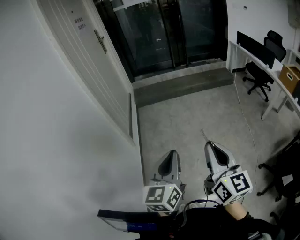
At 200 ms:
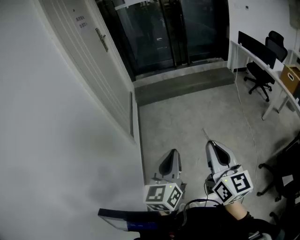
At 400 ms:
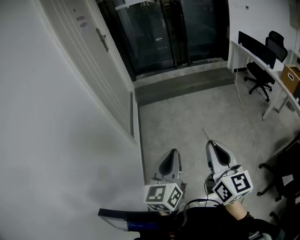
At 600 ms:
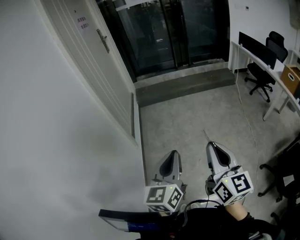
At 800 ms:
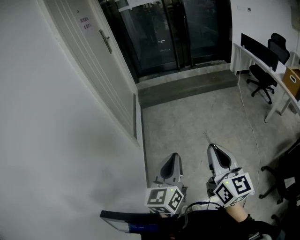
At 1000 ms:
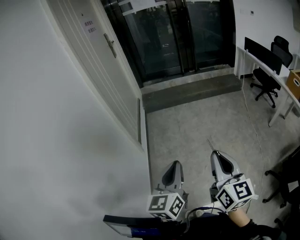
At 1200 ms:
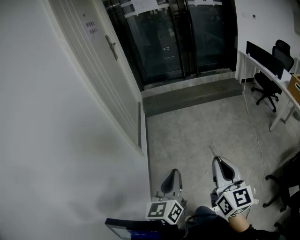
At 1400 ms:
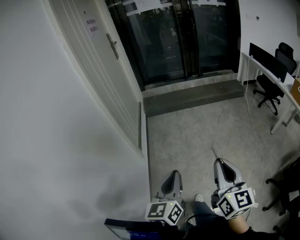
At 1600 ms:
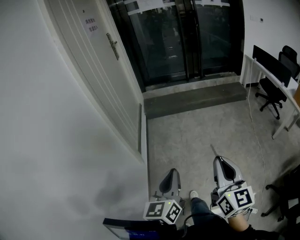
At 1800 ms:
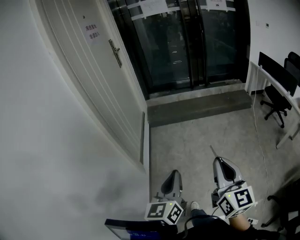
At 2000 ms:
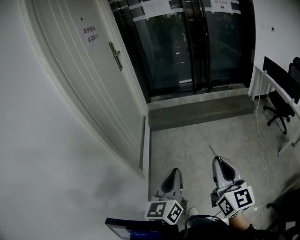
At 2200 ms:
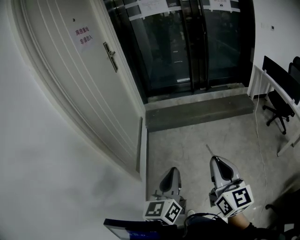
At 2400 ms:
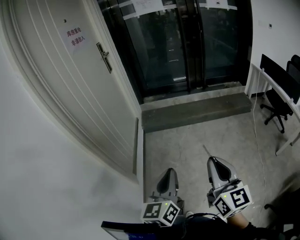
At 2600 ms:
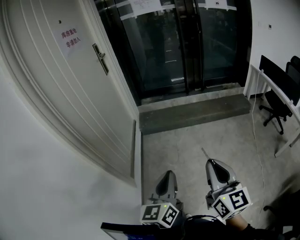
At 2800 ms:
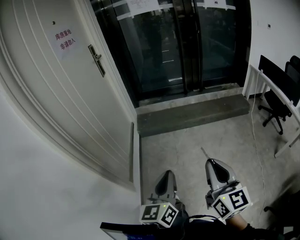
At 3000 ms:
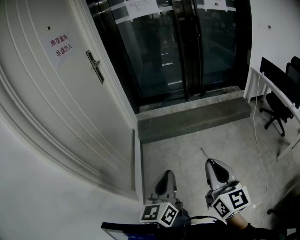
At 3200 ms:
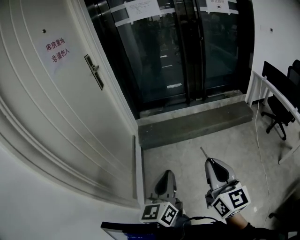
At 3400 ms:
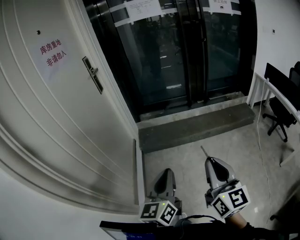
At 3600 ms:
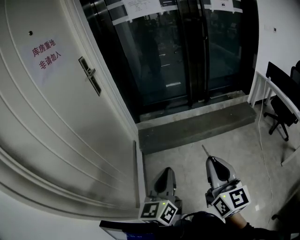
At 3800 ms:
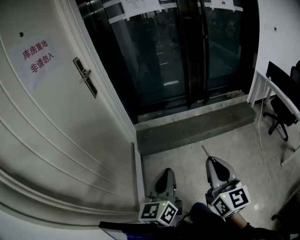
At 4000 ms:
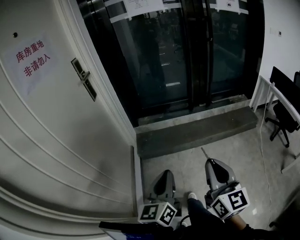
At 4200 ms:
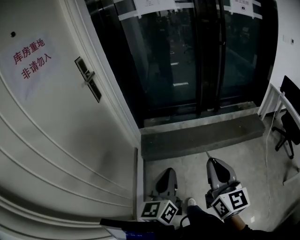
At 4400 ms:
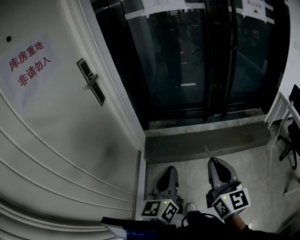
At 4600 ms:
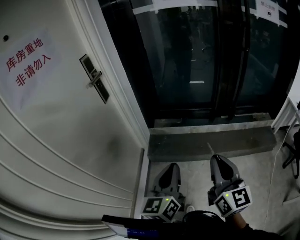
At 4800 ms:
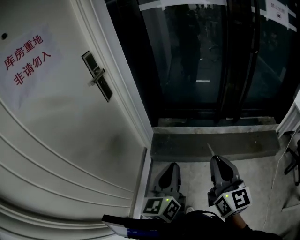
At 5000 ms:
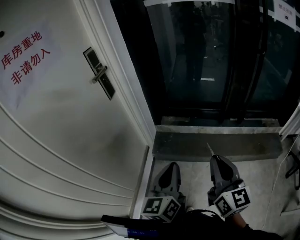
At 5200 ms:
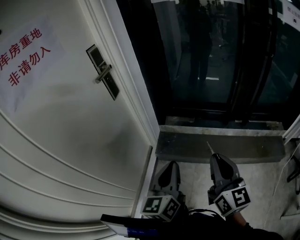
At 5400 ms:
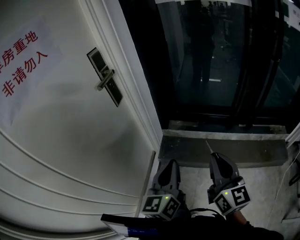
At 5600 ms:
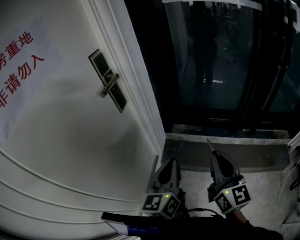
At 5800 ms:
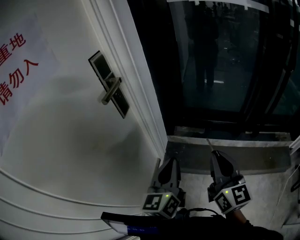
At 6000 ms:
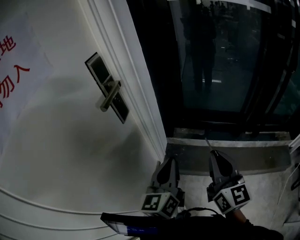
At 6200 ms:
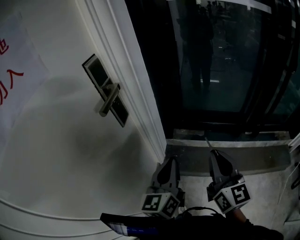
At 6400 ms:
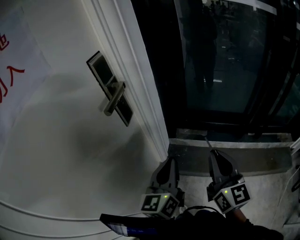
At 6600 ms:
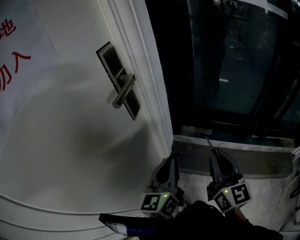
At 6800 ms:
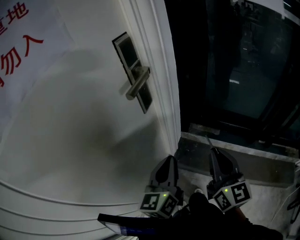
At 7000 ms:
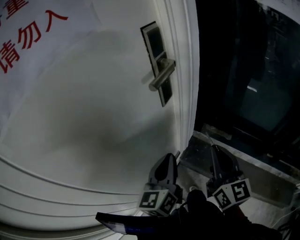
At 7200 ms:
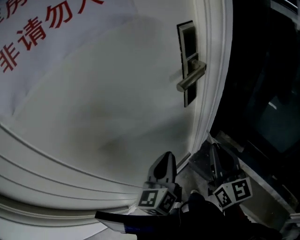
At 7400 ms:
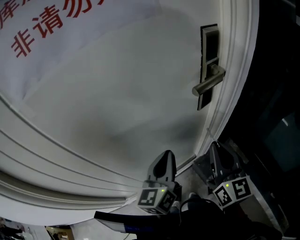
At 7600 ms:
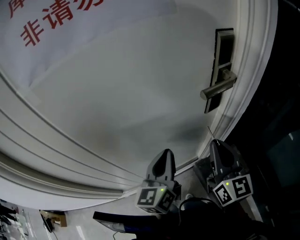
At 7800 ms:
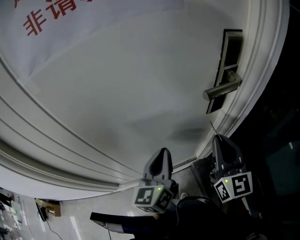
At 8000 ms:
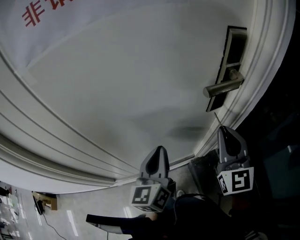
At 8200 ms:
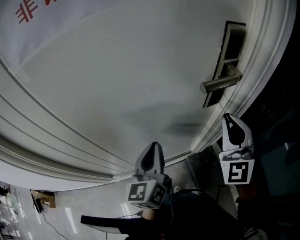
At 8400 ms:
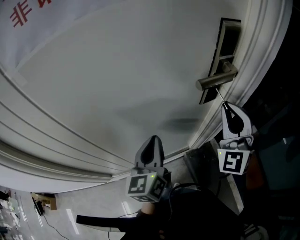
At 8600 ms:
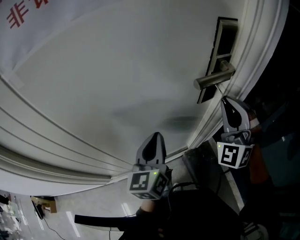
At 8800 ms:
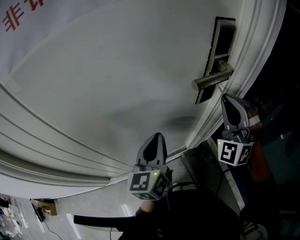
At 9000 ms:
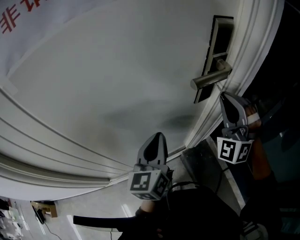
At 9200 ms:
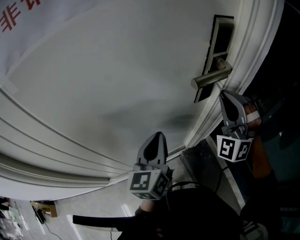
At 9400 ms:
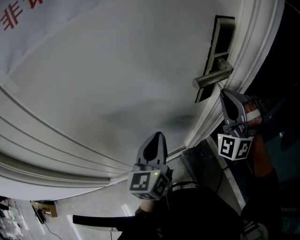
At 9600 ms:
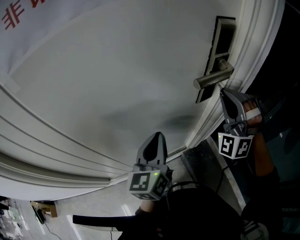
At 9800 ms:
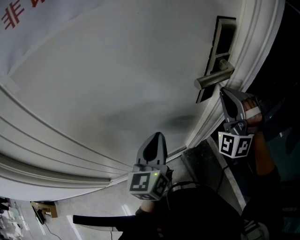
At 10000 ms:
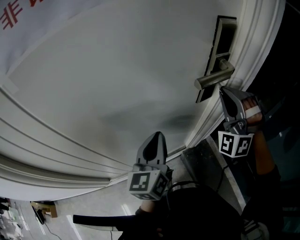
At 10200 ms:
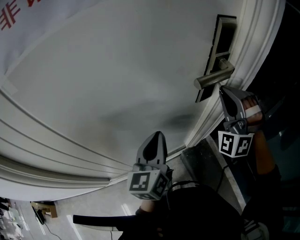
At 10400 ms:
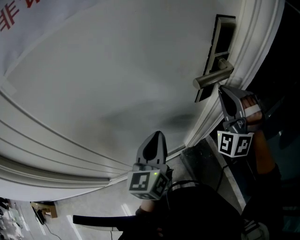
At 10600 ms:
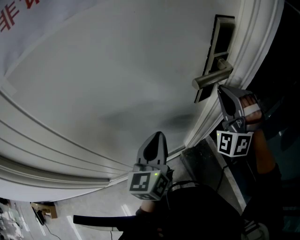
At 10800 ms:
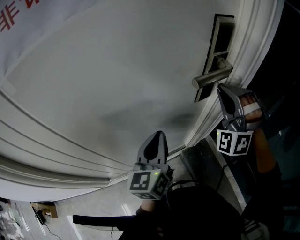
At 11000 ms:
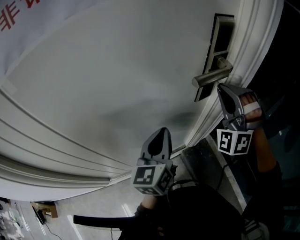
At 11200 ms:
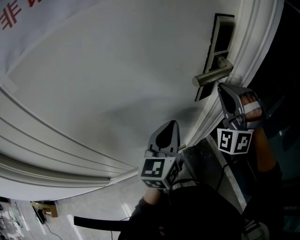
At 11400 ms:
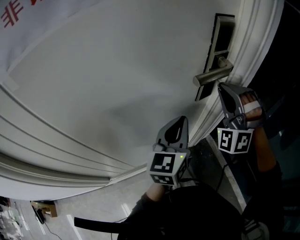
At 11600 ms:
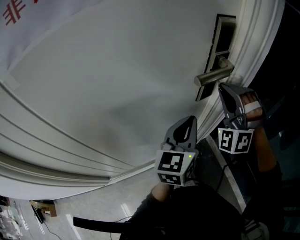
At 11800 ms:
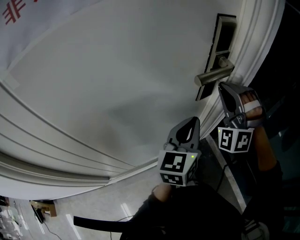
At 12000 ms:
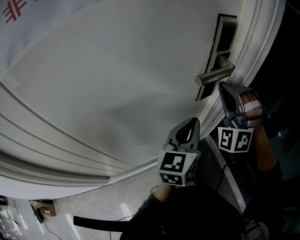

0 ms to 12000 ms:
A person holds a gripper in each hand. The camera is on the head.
0 ms to 1600 ms: The left gripper is displaced forward and to the left by some 15 cm. The right gripper travels forward by roughly 10 cm.
1600 ms to 3000 ms: The grippers both shift forward by roughly 35 cm.
3000 ms to 4400 ms: The two grippers travel together, forward, some 40 cm.
4400 ms to 6000 ms: The left gripper heads forward and to the left, covering about 35 cm. The right gripper is displaced forward by about 35 cm.
6000 ms to 7600 ms: The right gripper ends up some 25 cm from where it was, and changes its angle by about 50 degrees, while the left gripper changes place by some 20 cm, and changes its angle by about 50 degrees.
7600 ms to 9000 ms: The right gripper shifts about 10 cm forward and to the right, and rotates around the line of its fingers by approximately 90 degrees, counterclockwise from behind.
9000 ms to 10400 ms: The grippers move only a little.
10400 ms to 12000 ms: The left gripper travels to the right by about 10 cm.

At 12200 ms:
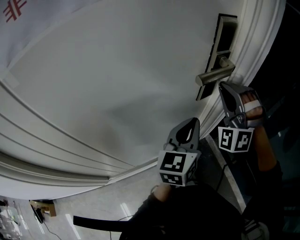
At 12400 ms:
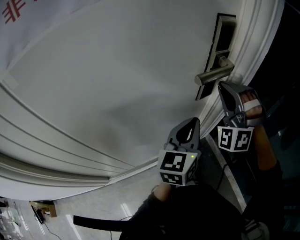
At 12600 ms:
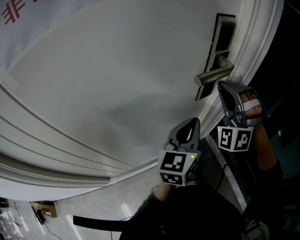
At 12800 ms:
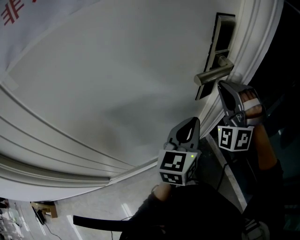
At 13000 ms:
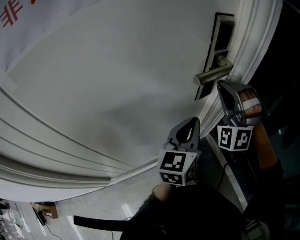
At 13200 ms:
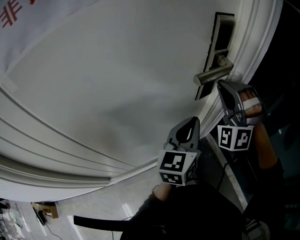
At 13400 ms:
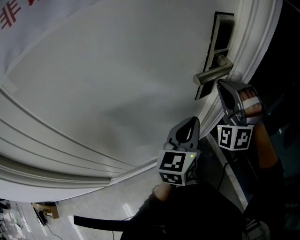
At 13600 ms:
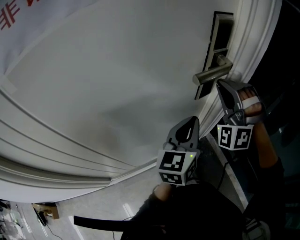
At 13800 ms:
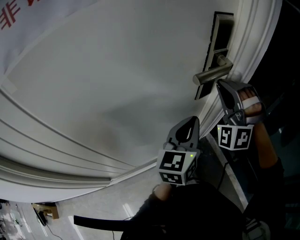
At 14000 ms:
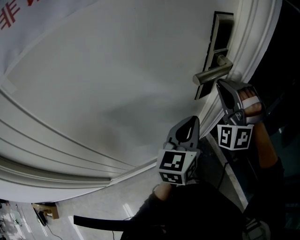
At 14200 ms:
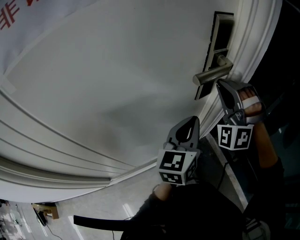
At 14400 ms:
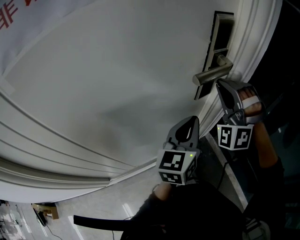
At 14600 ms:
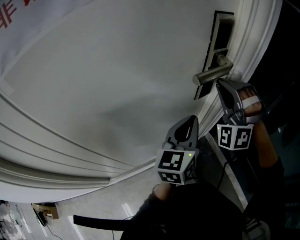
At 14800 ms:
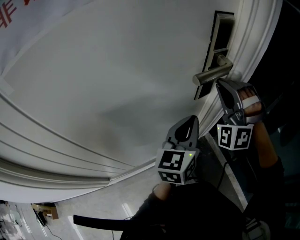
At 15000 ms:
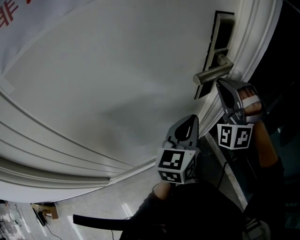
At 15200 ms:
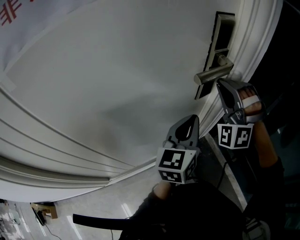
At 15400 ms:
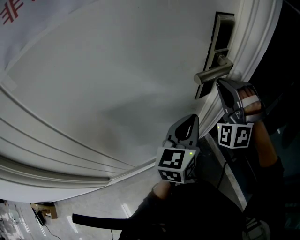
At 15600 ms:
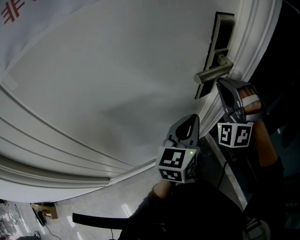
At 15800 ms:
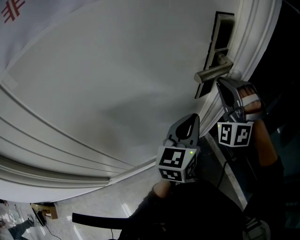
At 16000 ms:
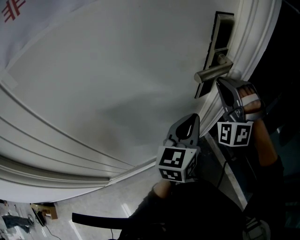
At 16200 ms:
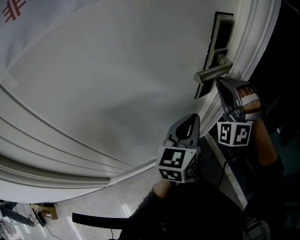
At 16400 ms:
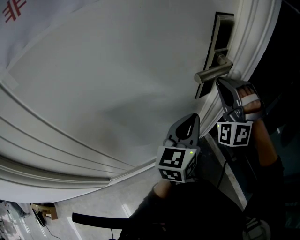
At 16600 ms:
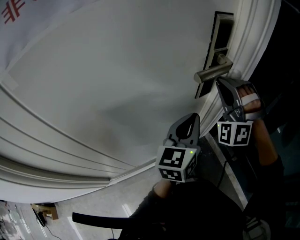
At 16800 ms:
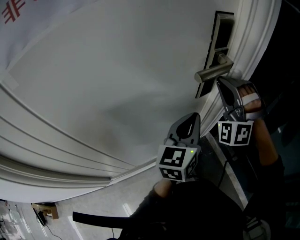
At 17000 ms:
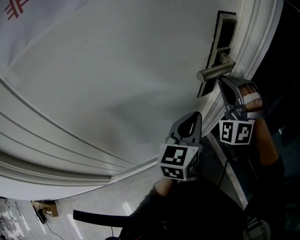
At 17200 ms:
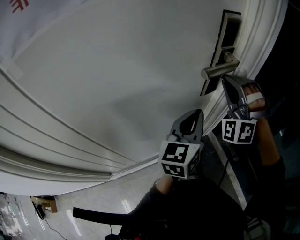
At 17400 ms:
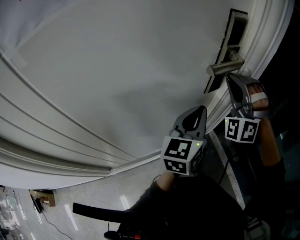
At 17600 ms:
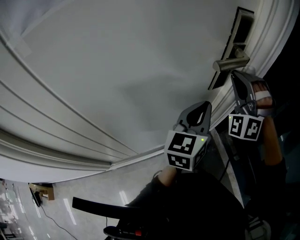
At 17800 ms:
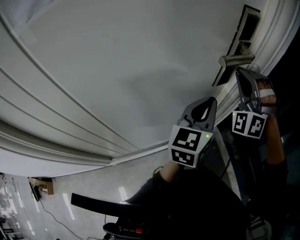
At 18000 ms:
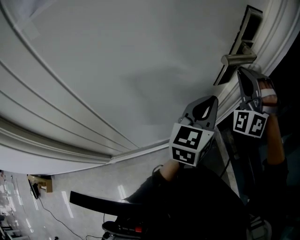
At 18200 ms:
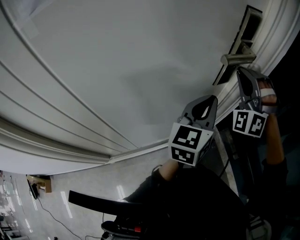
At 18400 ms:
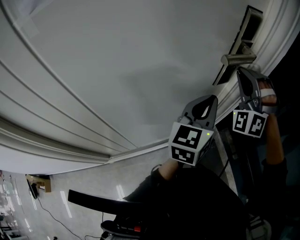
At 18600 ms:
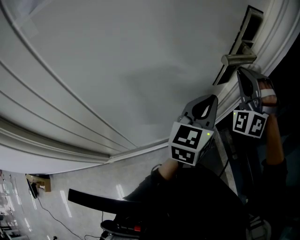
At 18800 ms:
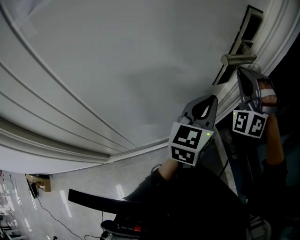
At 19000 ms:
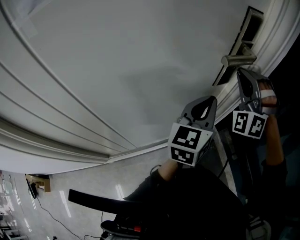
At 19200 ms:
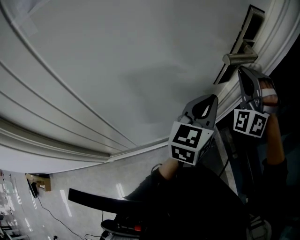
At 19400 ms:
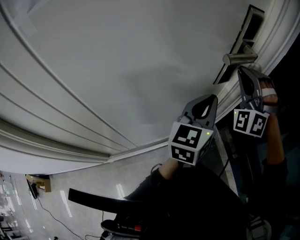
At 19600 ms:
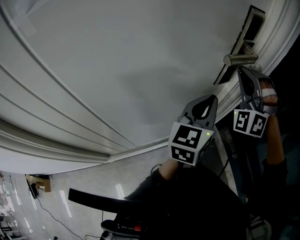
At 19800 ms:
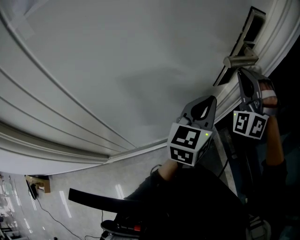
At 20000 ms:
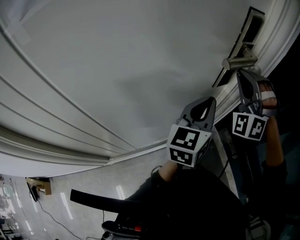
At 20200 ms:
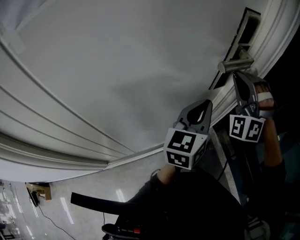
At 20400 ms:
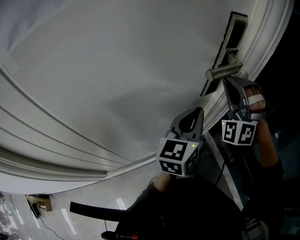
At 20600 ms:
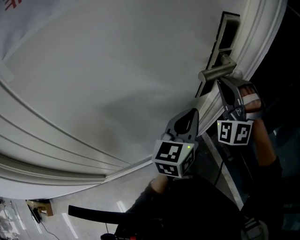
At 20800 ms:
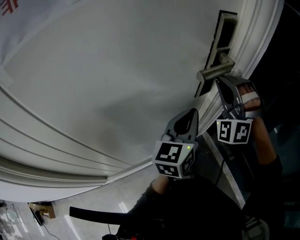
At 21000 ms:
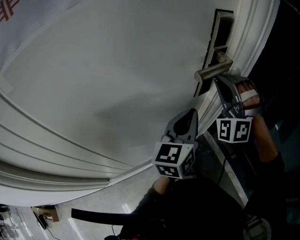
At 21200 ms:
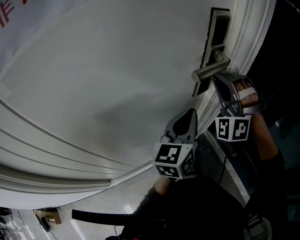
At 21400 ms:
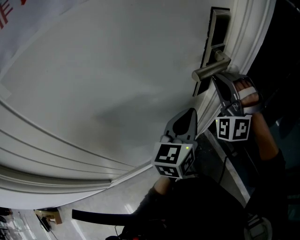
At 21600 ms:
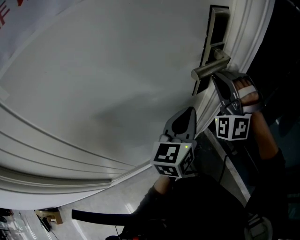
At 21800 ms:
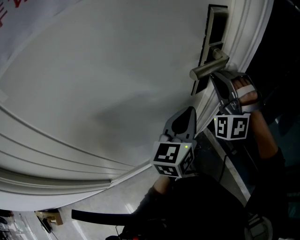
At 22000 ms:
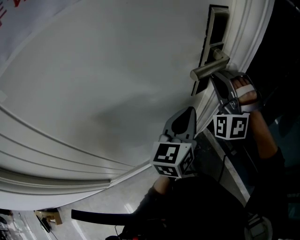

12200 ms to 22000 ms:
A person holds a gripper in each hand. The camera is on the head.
12200 ms to 16400 ms: Neither gripper changes place.
16400 ms to 17800 ms: The two grippers keep their place.
17800 ms to 19200 ms: Both grippers stay put.
19200 ms to 20600 ms: The grippers stay close to where they were, moving slightly.
20600 ms to 22000 ms: Both grippers stay put.

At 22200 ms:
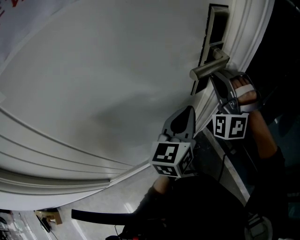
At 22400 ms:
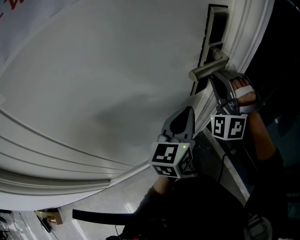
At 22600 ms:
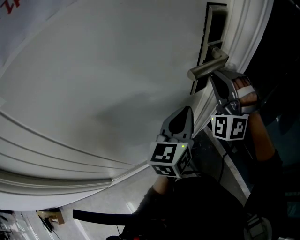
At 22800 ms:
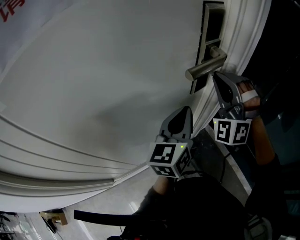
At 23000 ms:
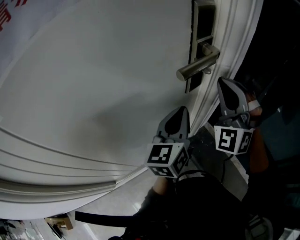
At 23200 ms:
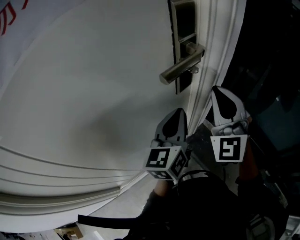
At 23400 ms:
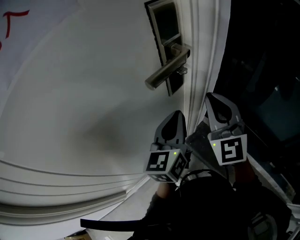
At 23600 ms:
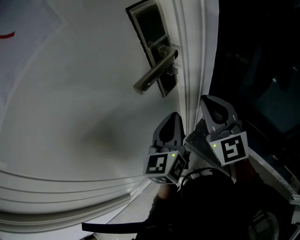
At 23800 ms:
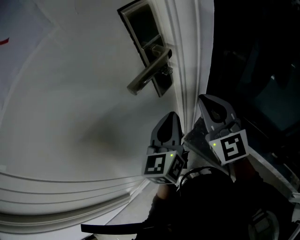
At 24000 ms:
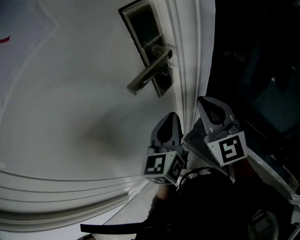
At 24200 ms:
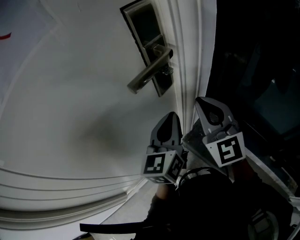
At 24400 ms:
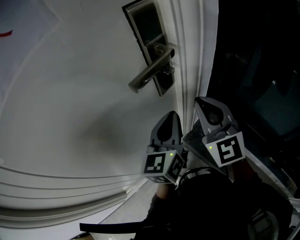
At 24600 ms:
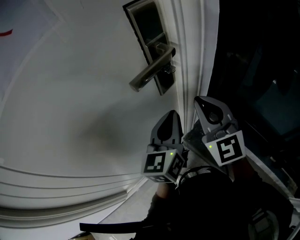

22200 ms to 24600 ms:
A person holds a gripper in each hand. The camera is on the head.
22200 ms to 23400 ms: The right gripper shifts roughly 10 cm backward and to the right, and rotates around the line of its fingers by about 70 degrees, clockwise from behind.
23400 ms to 24600 ms: There are only small adjustments of the grippers.
